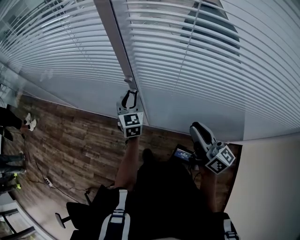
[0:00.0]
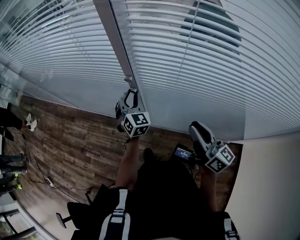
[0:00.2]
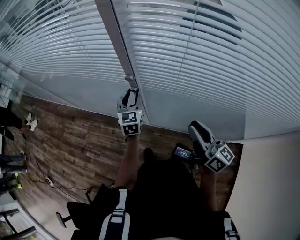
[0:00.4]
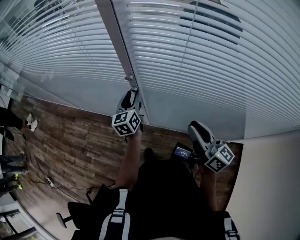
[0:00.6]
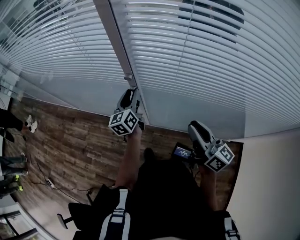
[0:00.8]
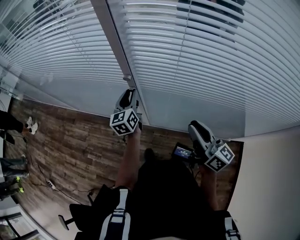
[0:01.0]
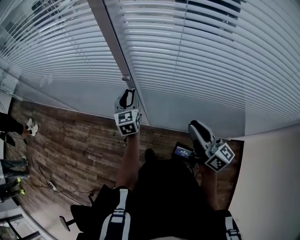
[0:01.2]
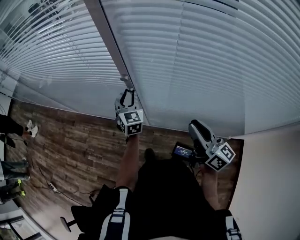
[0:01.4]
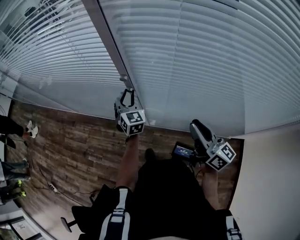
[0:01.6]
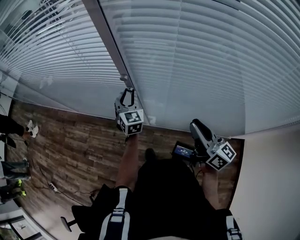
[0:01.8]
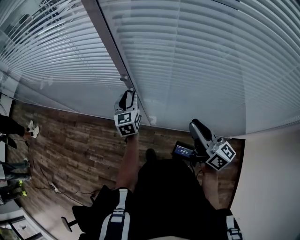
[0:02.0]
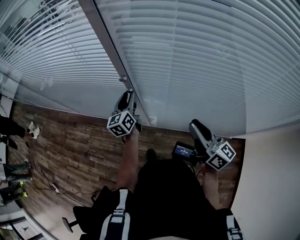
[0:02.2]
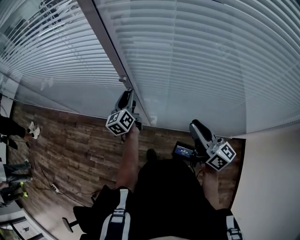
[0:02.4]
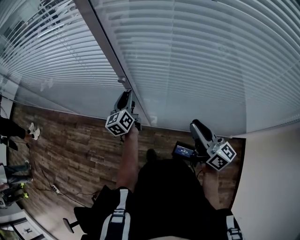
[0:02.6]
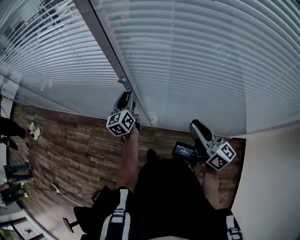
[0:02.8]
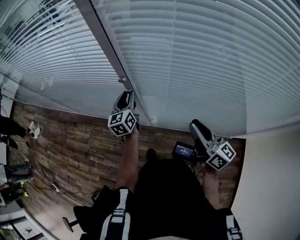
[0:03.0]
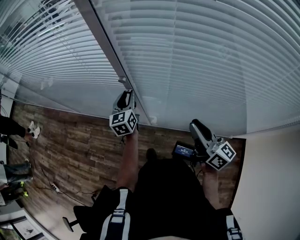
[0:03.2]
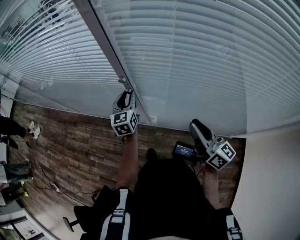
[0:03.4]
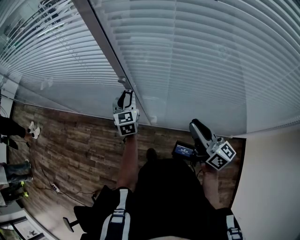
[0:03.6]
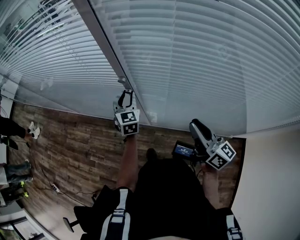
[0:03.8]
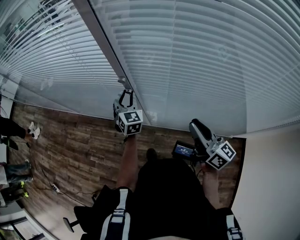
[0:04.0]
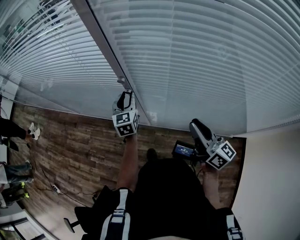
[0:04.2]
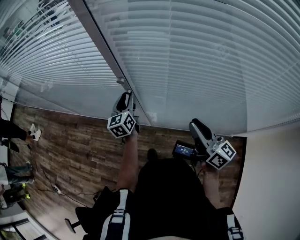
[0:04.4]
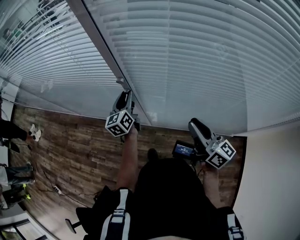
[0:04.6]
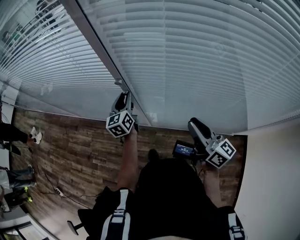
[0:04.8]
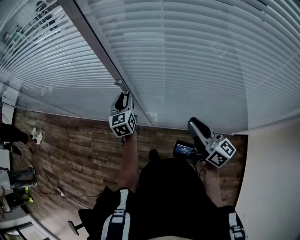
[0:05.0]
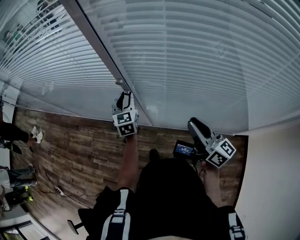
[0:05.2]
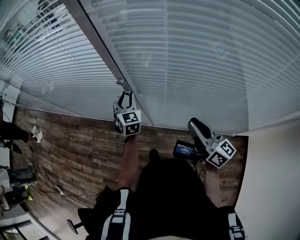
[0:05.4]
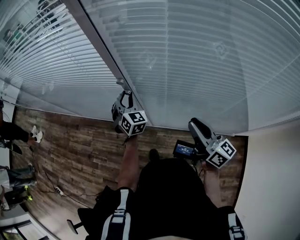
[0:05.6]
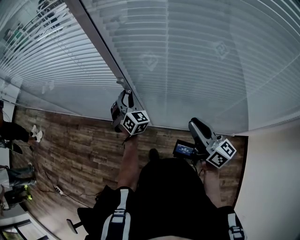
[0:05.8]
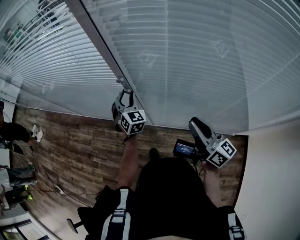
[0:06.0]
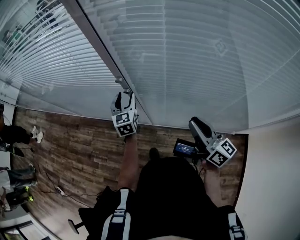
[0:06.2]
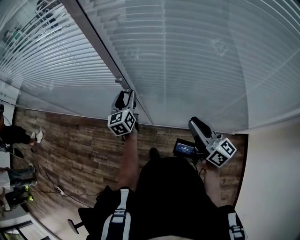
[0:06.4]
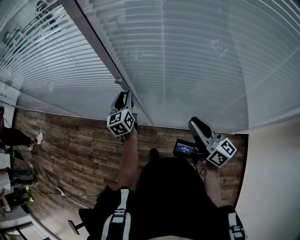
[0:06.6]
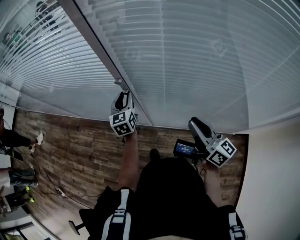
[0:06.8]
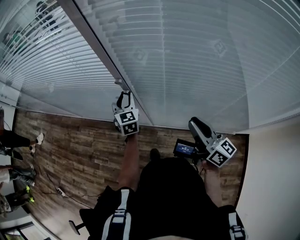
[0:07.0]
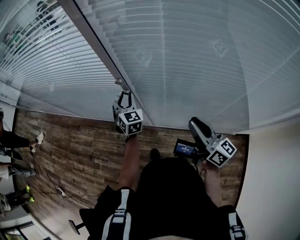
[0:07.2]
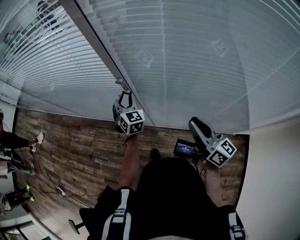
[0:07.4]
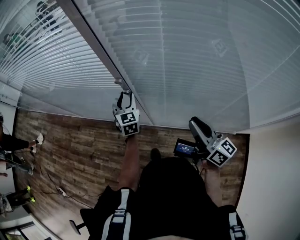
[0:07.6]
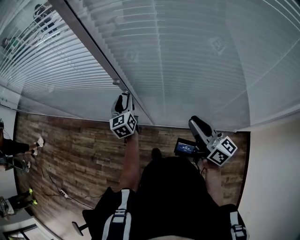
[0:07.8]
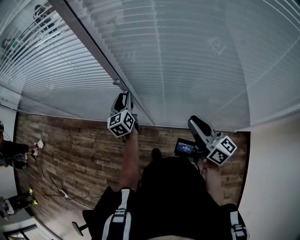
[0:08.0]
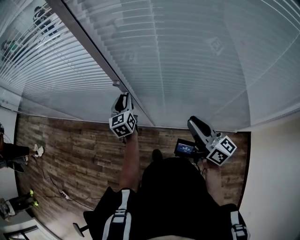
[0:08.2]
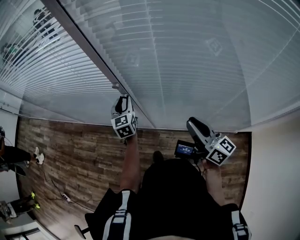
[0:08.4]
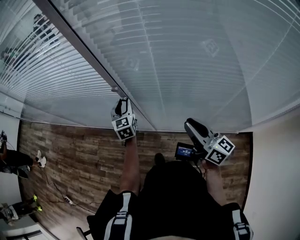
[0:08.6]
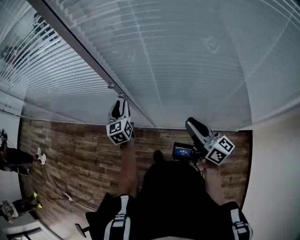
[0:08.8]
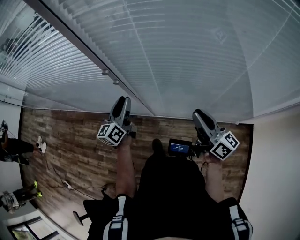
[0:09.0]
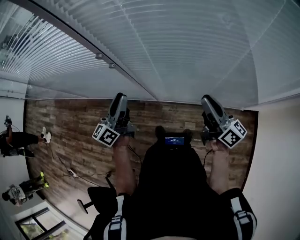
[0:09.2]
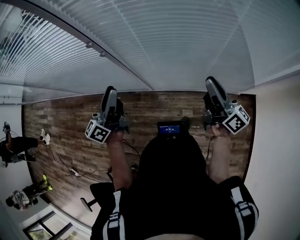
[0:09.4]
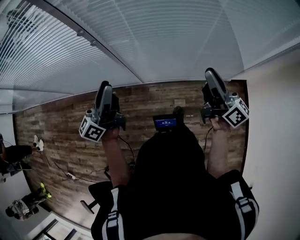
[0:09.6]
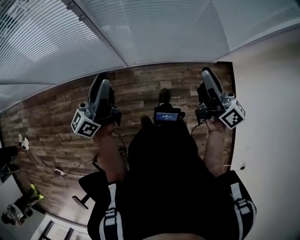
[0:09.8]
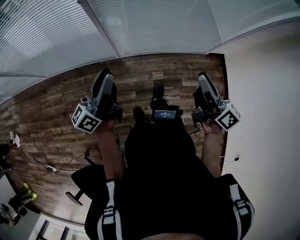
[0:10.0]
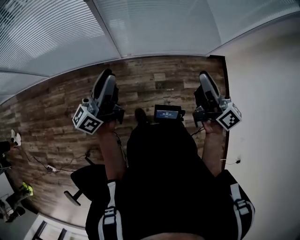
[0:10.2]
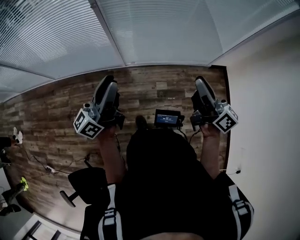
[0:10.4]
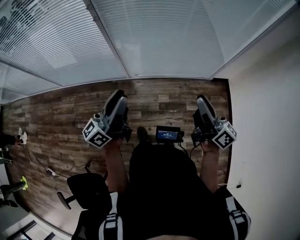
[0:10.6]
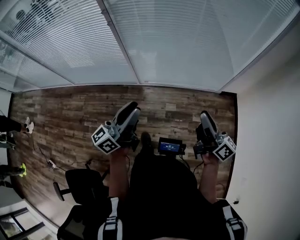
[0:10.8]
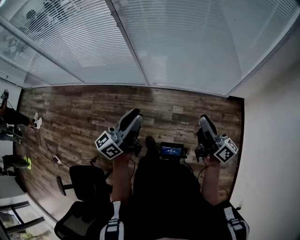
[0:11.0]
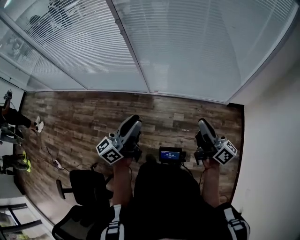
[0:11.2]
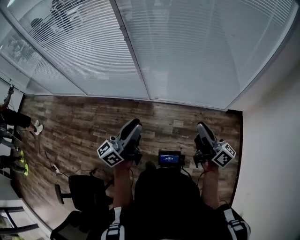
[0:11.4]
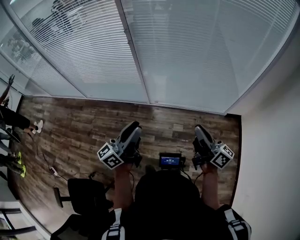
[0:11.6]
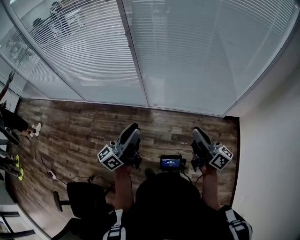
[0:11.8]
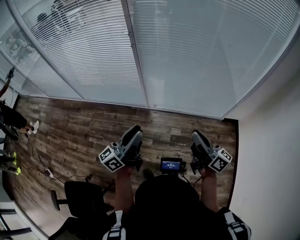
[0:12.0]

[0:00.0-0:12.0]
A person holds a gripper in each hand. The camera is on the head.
0:01.6 to 0:03.0: The left gripper turns by approximately 40 degrees.
0:04.4 to 0:06.0: The left gripper twists approximately 50 degrees clockwise, seen from behind.
0:07.6 to 0:09.0: The left gripper heads backward and upward, covering about 10 cm, and rotates approximately 50 degrees. The right gripper moves to the right, about 5 cm.
0:09.0 to 0:10.4: The two grippers go about 30 cm backward. The left gripper turns by approximately 40 degrees.
0:10.4 to 0:12.0: The left gripper heads backward and to the right, covering about 15 cm; the right gripper goes some 10 cm backward.

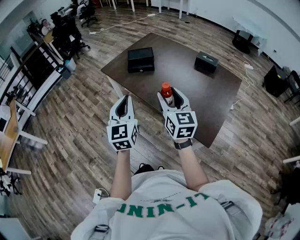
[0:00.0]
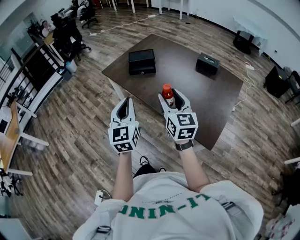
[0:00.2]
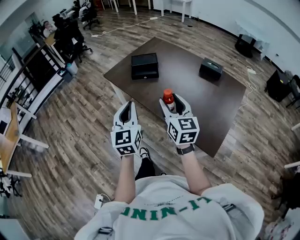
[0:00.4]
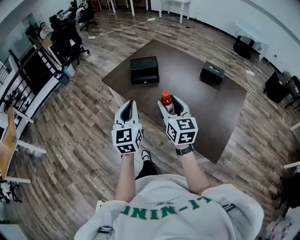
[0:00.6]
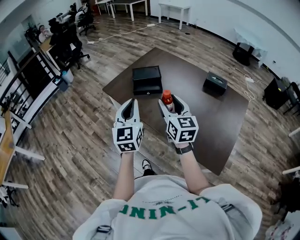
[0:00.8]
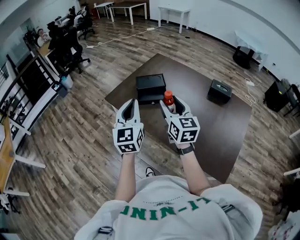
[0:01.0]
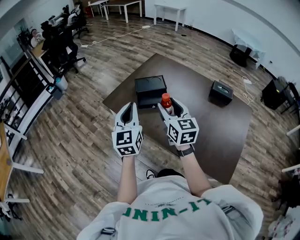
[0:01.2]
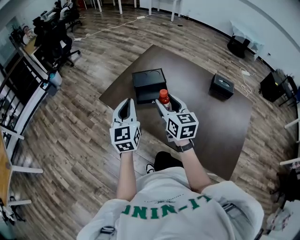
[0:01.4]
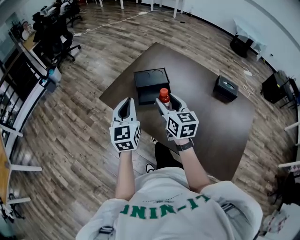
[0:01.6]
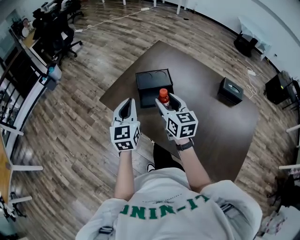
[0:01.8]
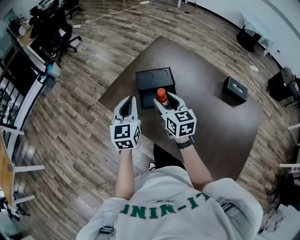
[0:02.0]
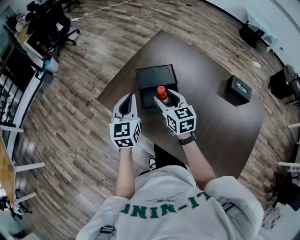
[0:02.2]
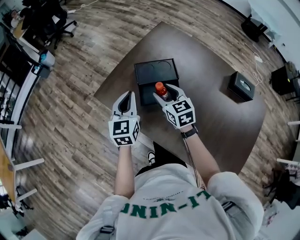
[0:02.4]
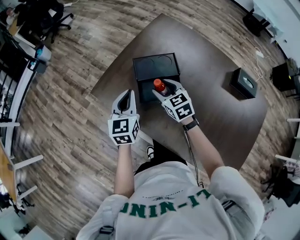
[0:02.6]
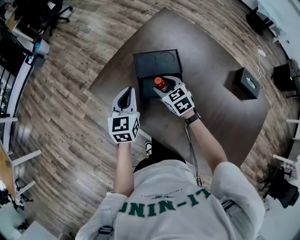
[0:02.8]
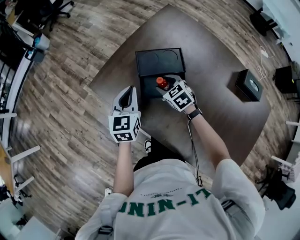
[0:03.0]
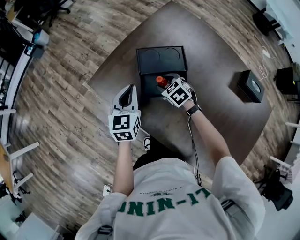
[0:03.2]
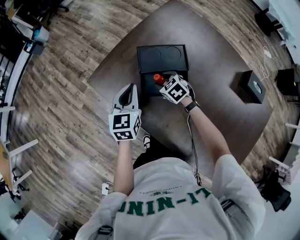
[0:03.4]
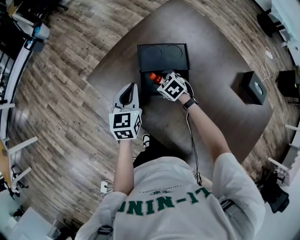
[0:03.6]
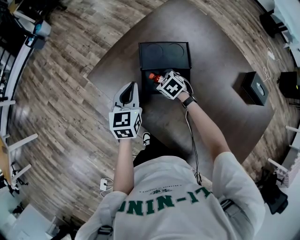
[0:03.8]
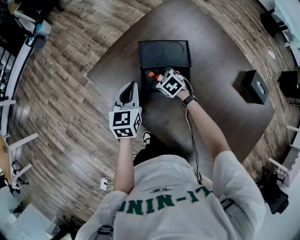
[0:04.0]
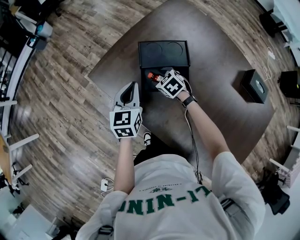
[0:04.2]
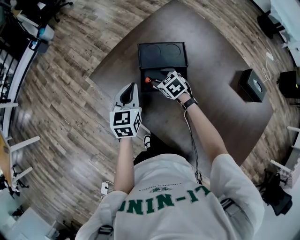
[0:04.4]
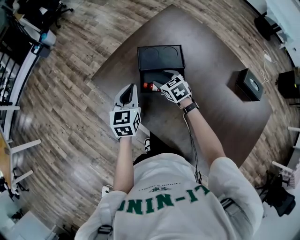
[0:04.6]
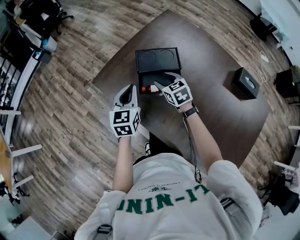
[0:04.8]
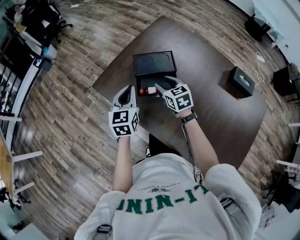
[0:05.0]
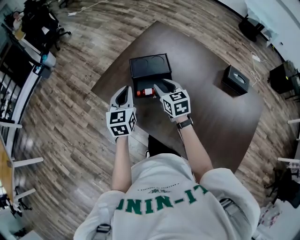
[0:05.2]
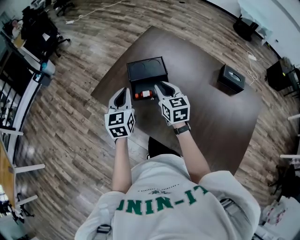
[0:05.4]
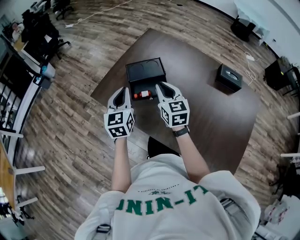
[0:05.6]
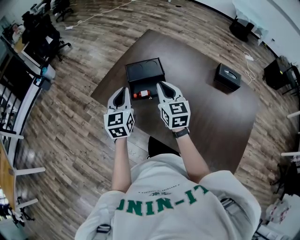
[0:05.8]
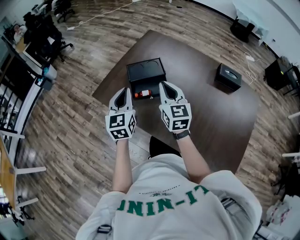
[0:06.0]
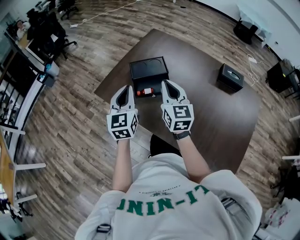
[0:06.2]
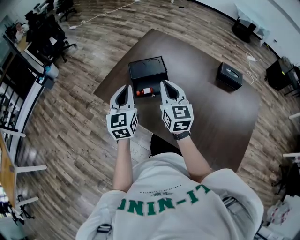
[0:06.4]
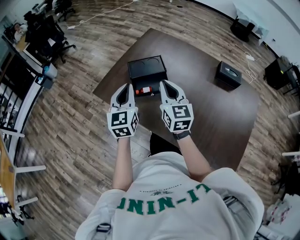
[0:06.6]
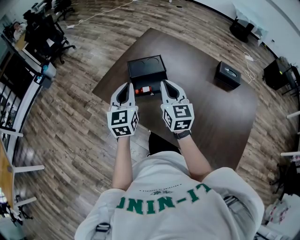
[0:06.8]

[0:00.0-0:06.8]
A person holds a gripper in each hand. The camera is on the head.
0:00.0 to 0:01.4: The two grippers go approximately 40 cm forward.
0:01.4 to 0:02.8: Both grippers move forward and downward, some 35 cm. The right gripper changes its angle by about 40 degrees.
0:02.8 to 0:04.0: The right gripper moves downward, approximately 15 cm, and swivels roughly 20 degrees, while the left gripper heads downward, covering roughly 5 cm.
0:04.0 to 0:05.4: The left gripper goes about 15 cm upward and backward. Meanwhile the right gripper goes some 30 cm upward and backward, points its fingers about 40 degrees further upward, and closes up.
0:05.4 to 0:06.8: The two grippers go approximately 10 cm upward and backward.

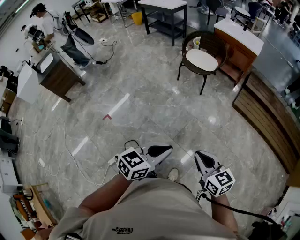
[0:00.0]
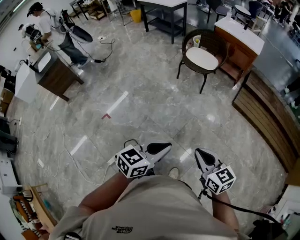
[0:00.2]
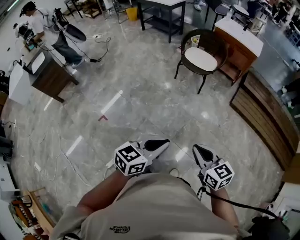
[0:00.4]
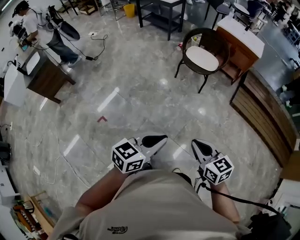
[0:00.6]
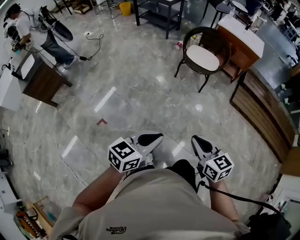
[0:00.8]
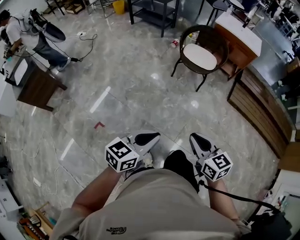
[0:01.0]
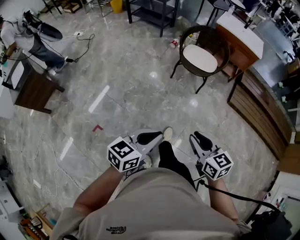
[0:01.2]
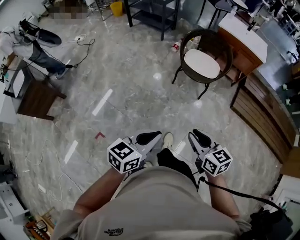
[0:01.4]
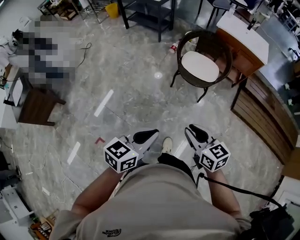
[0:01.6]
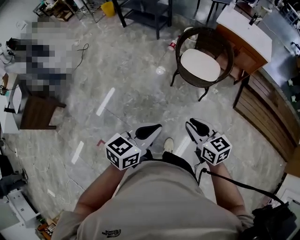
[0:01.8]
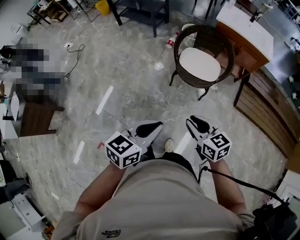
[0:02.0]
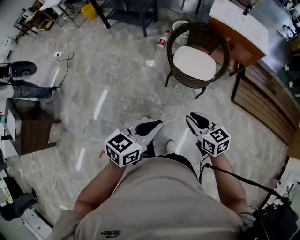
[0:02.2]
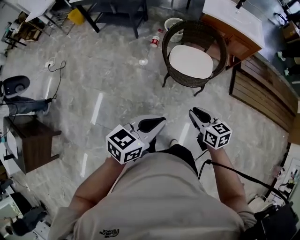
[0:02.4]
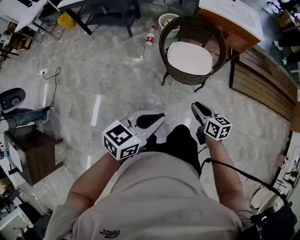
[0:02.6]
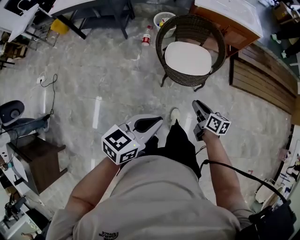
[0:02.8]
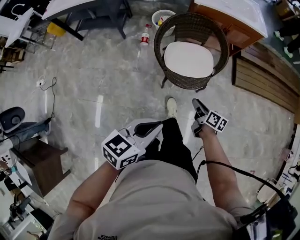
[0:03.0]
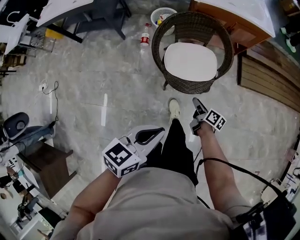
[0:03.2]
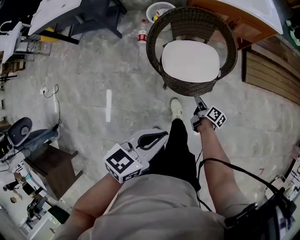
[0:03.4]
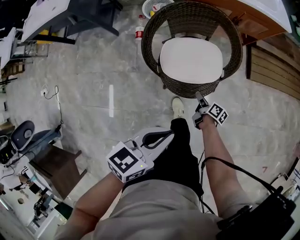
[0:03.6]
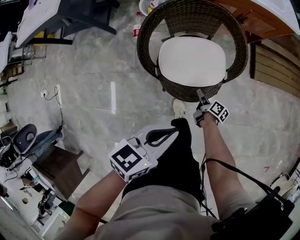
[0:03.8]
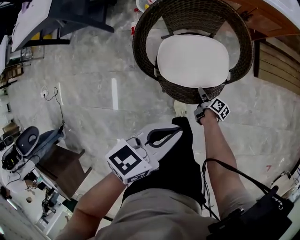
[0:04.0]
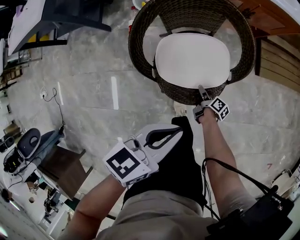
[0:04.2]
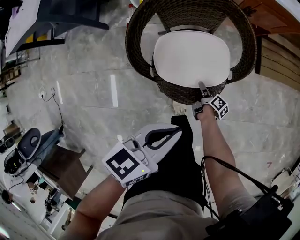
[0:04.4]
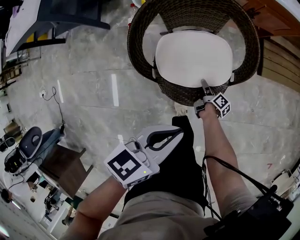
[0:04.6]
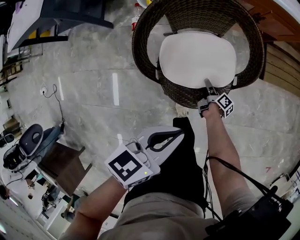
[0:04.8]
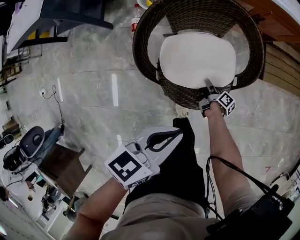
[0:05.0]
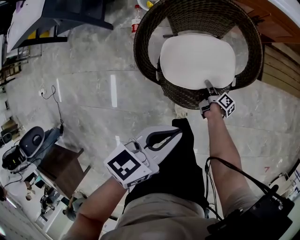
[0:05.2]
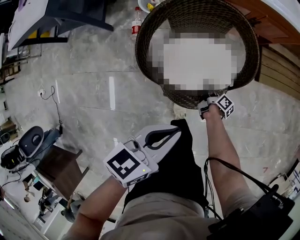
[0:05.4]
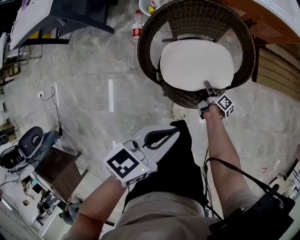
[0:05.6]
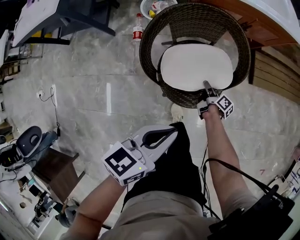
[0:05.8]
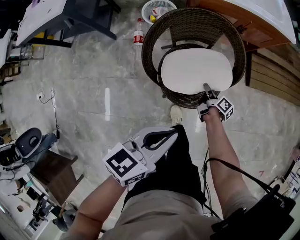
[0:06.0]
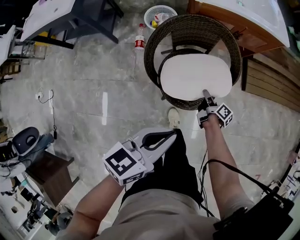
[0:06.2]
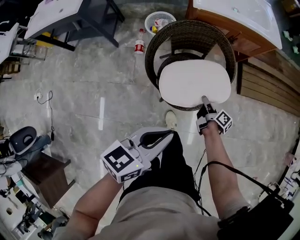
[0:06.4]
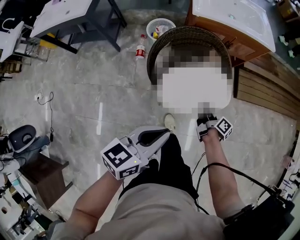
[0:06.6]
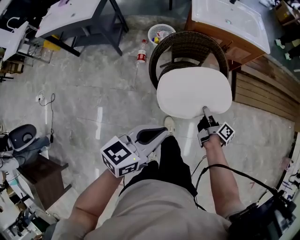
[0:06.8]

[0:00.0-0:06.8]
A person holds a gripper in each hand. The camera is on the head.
0:00.0 to 0:01.4: The pair of grippers is taken forward and to the left, roughly 40 cm.
0:01.4 to 0:02.8: The two grippers travel together, about 40 cm. The right gripper twists some 40 degrees clockwise, seen from behind. The left gripper swivels roughly 30 degrees.
0:02.8 to 0:04.0: The left gripper is displaced forward and downward by about 35 cm. Meanwhile the right gripper goes approximately 50 cm downward and forward, and rotates around the line of its fingers by some 40 degrees, clockwise from behind.
0:04.0 to 0:05.4: The right gripper shifts roughly 5 cm forward, and closes.
0:05.4 to 0:06.8: The left gripper goes some 20 cm upward and backward, while the right gripper goes roughly 30 cm upward, and turns by about 20 degrees.
